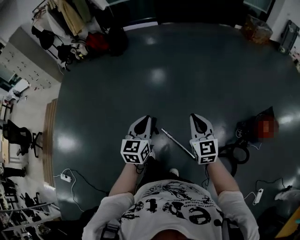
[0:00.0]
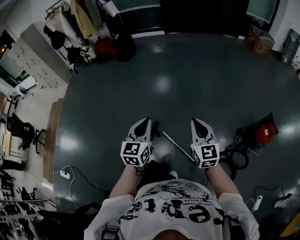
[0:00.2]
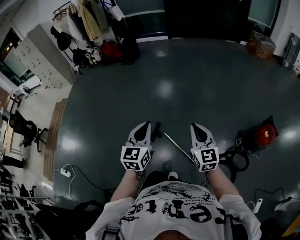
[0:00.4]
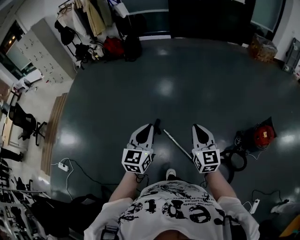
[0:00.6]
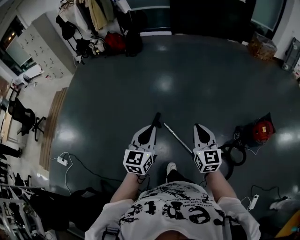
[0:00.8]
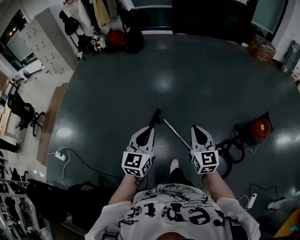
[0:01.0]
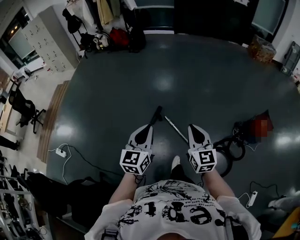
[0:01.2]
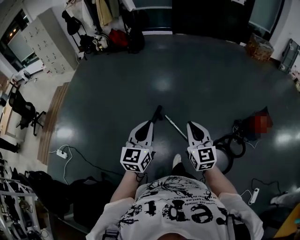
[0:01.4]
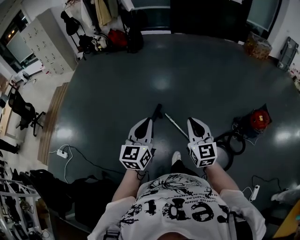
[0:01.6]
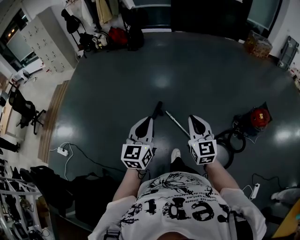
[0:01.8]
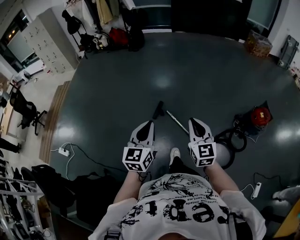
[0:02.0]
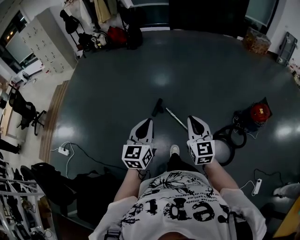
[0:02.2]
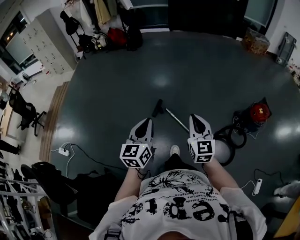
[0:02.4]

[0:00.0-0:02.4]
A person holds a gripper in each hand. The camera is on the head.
0:00.0 to 0:01.2: Both grippers move backward, roughly 35 cm.
0:01.2 to 0:02.4: The grippers both shift backward by some 10 cm.

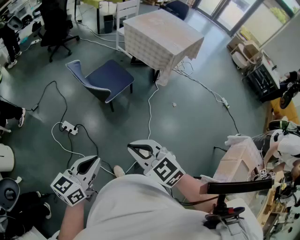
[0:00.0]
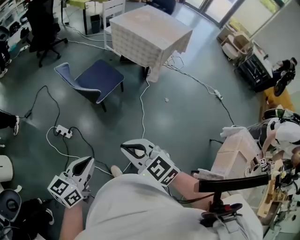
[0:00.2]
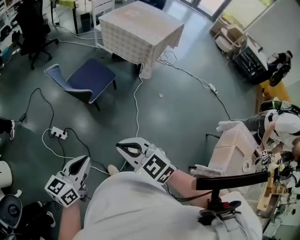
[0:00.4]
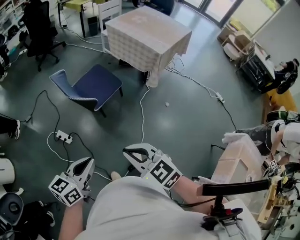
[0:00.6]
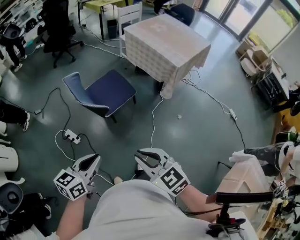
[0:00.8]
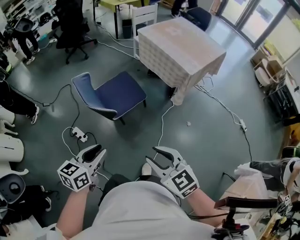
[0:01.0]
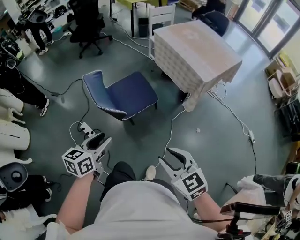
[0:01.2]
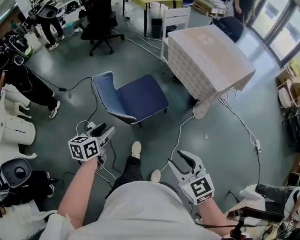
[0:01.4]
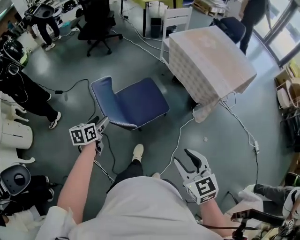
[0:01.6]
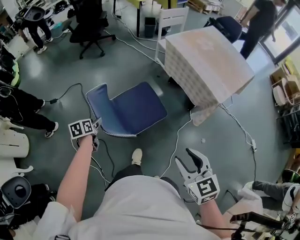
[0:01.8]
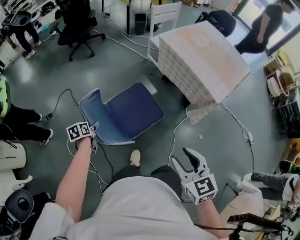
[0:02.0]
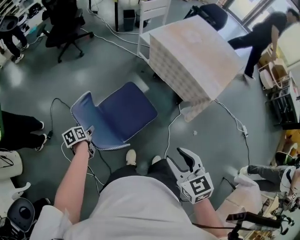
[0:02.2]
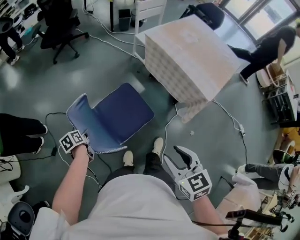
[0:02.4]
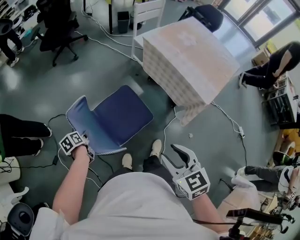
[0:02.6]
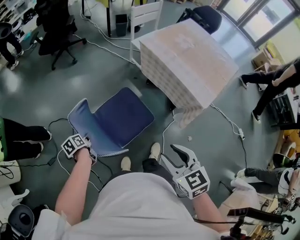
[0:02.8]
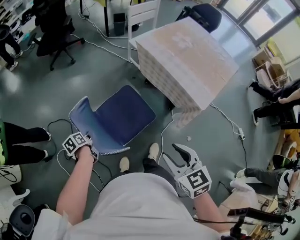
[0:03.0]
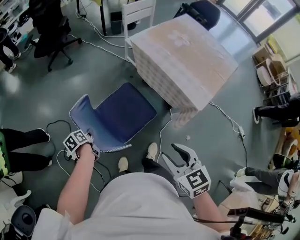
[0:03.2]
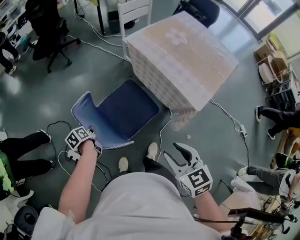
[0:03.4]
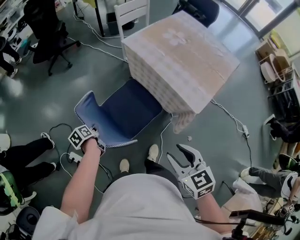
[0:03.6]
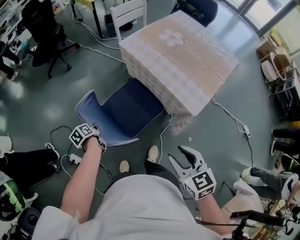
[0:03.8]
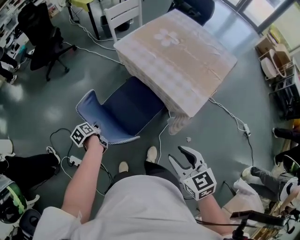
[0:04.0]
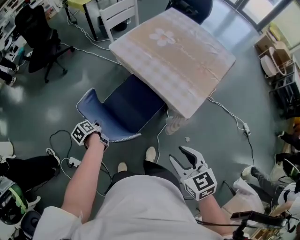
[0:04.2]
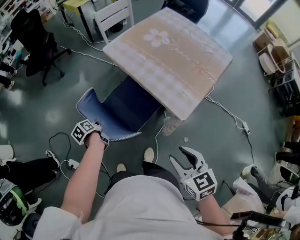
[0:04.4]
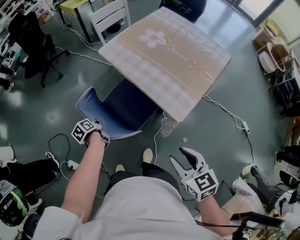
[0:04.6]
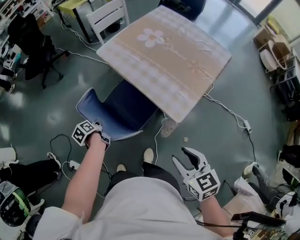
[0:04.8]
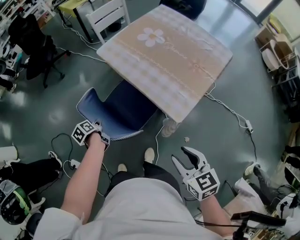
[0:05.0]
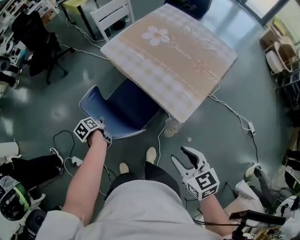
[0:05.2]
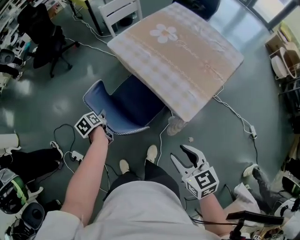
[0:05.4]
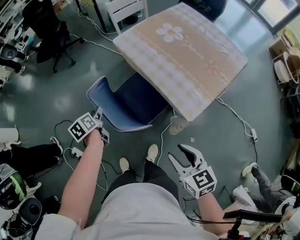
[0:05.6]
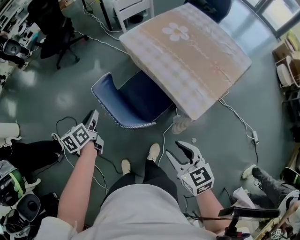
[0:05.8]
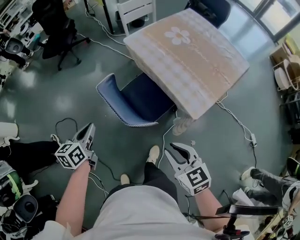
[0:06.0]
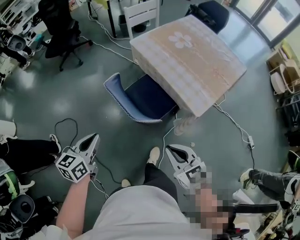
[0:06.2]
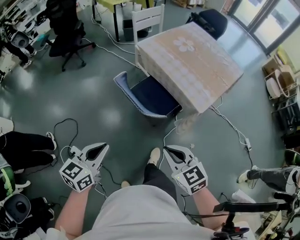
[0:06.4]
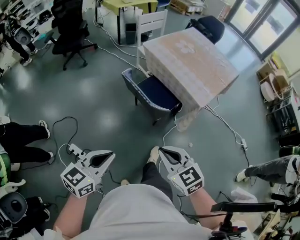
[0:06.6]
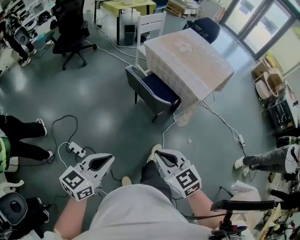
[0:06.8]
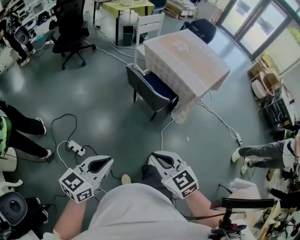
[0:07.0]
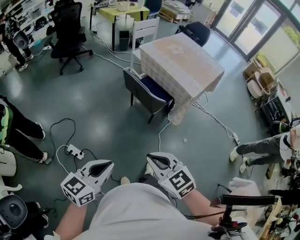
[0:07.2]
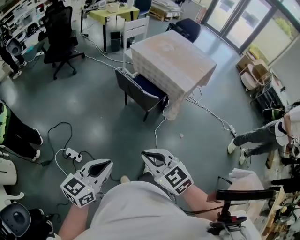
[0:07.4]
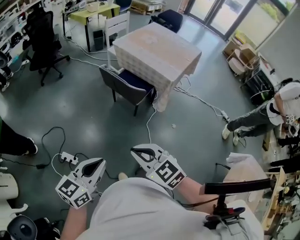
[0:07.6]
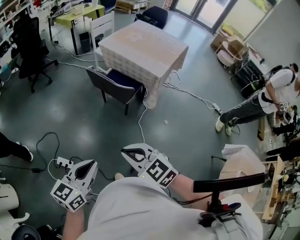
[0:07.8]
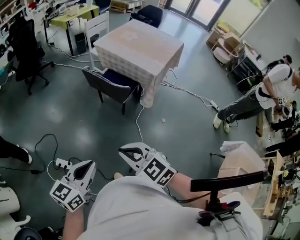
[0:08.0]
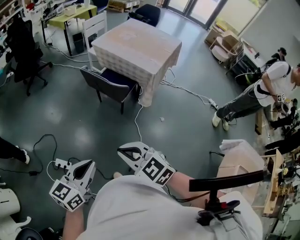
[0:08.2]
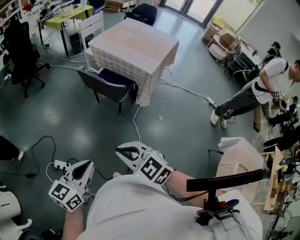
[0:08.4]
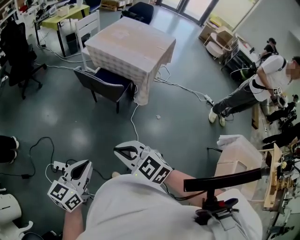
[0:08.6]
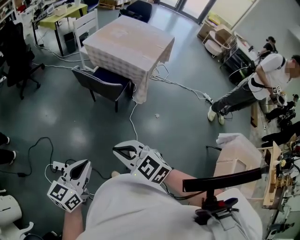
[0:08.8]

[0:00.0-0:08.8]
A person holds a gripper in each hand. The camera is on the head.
0:00.0 to 0:01.4: The right gripper goes approximately 30 cm forward and to the right, and opens up. The left gripper moves forward, some 35 cm, turns by roughly 30 degrees, and opens up.
0:01.4 to 0:03.0: The left gripper goes some 35 cm forward and downward, changes its angle by some 40 degrees, and closes up. Meanwhile the right gripper travels forward by about 30 cm.
0:03.0 to 0:04.4: The right gripper moves to the right, about 20 cm, while the left gripper moves to the right and forward, approximately 30 cm.
0:04.4 to 0:05.8: The left gripper is displaced upward by about 15 cm, rotates about 30 degrees, and opens and closes again.
0:05.8 to 0:07.4: Both grippers are carried backward and to the left, roughly 50 cm. The right gripper closes up, while the left gripper turns by approximately 50 degrees, and closes its fingers.
0:07.4 to 0:08.8: The grippers make only small movements.

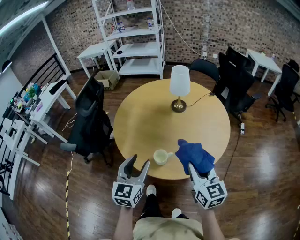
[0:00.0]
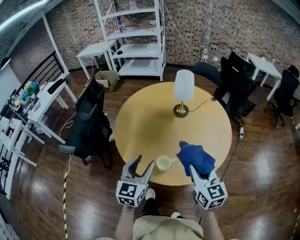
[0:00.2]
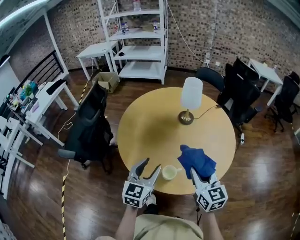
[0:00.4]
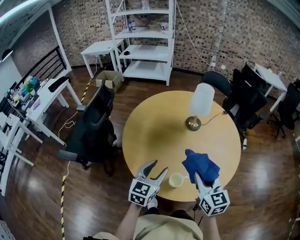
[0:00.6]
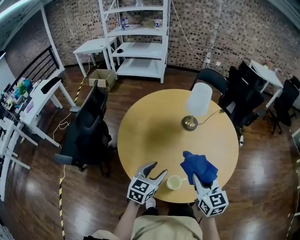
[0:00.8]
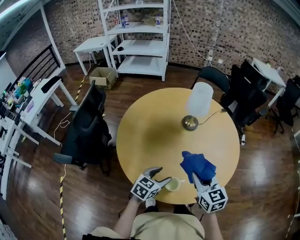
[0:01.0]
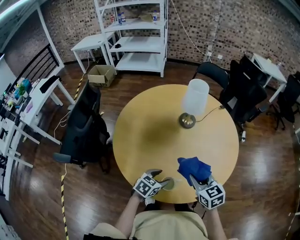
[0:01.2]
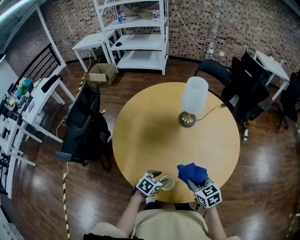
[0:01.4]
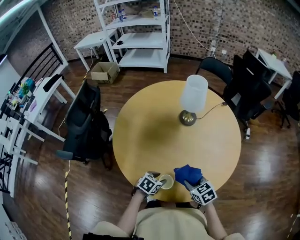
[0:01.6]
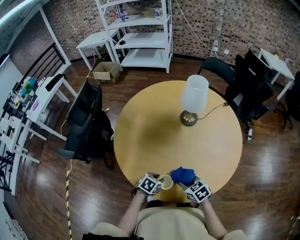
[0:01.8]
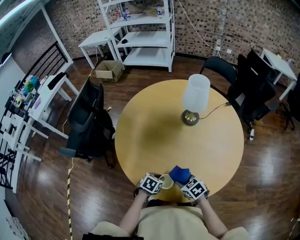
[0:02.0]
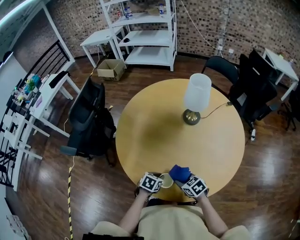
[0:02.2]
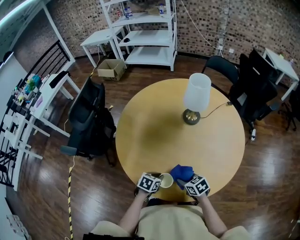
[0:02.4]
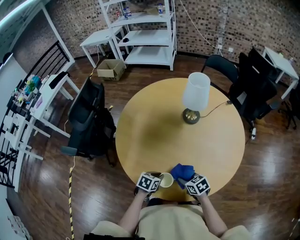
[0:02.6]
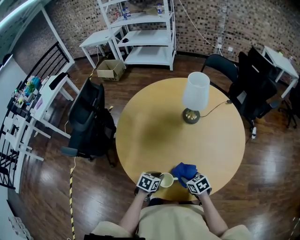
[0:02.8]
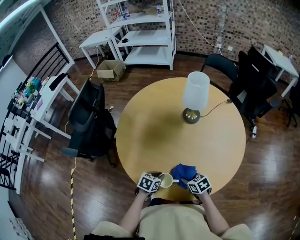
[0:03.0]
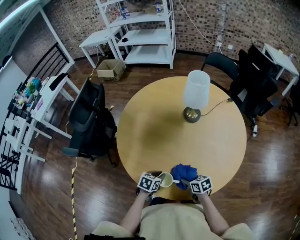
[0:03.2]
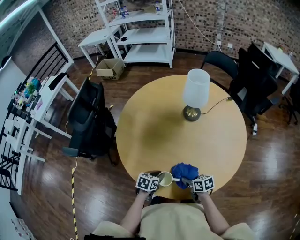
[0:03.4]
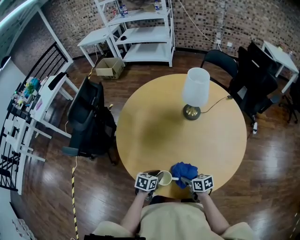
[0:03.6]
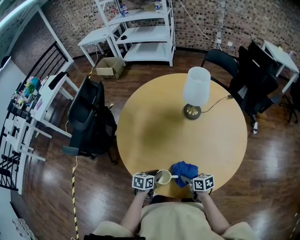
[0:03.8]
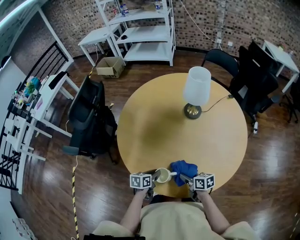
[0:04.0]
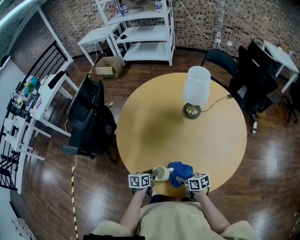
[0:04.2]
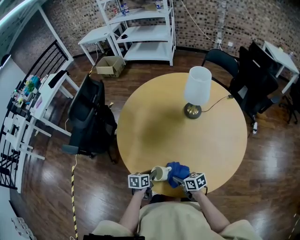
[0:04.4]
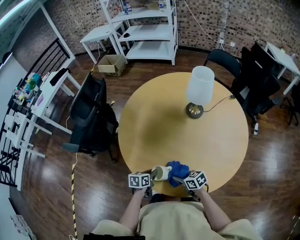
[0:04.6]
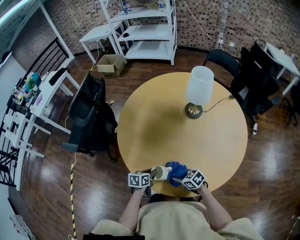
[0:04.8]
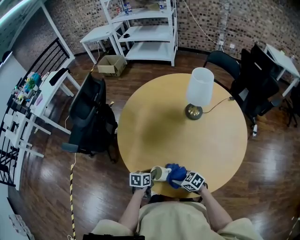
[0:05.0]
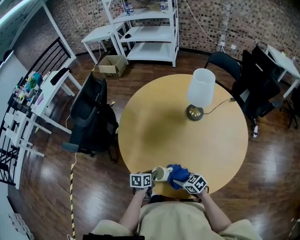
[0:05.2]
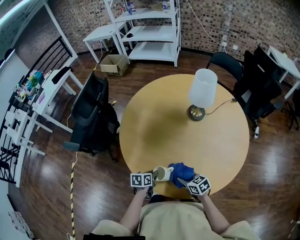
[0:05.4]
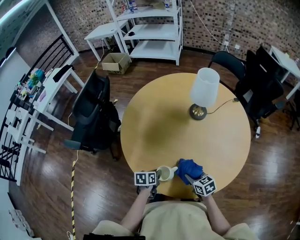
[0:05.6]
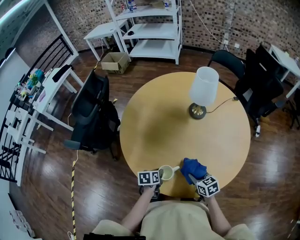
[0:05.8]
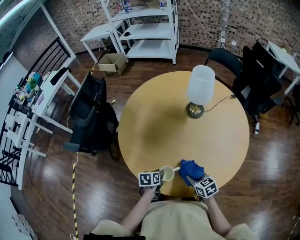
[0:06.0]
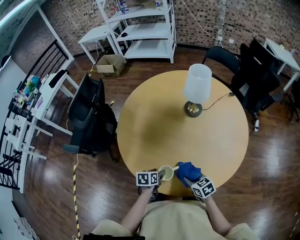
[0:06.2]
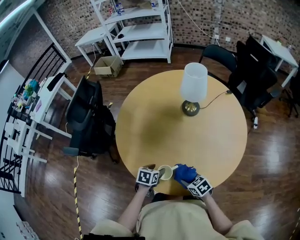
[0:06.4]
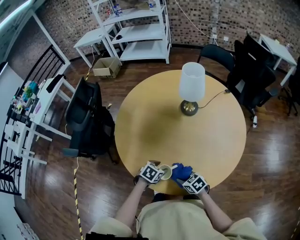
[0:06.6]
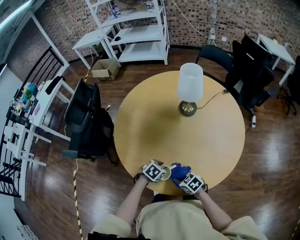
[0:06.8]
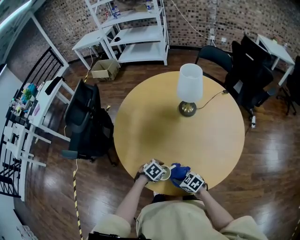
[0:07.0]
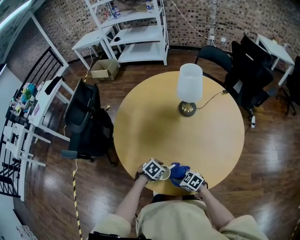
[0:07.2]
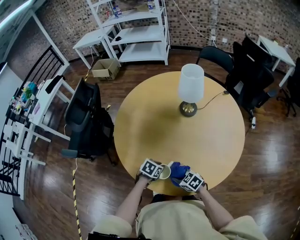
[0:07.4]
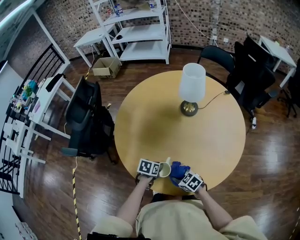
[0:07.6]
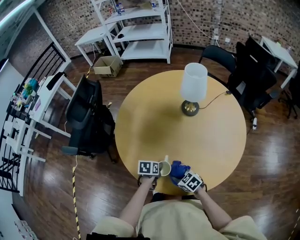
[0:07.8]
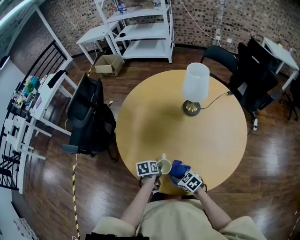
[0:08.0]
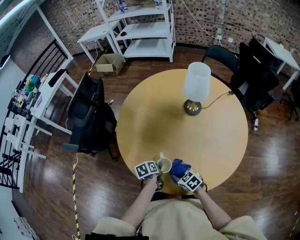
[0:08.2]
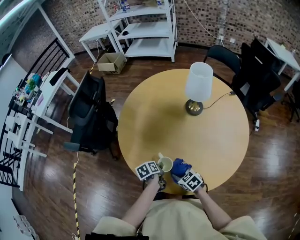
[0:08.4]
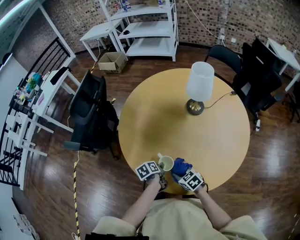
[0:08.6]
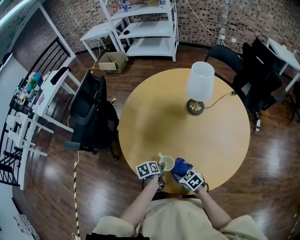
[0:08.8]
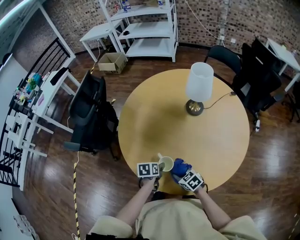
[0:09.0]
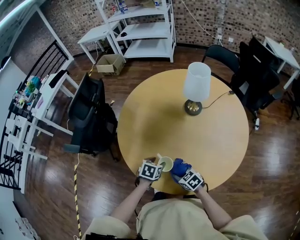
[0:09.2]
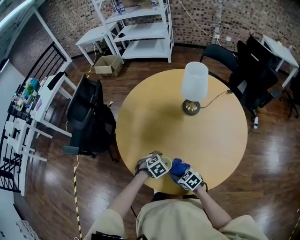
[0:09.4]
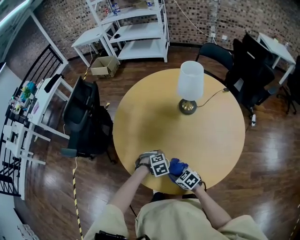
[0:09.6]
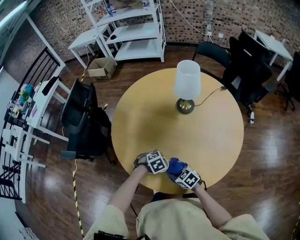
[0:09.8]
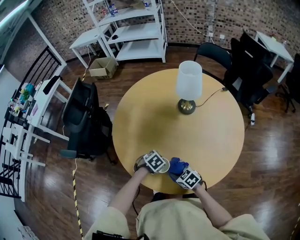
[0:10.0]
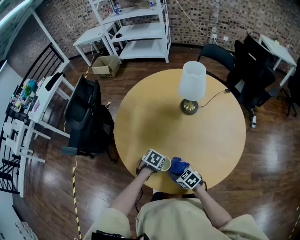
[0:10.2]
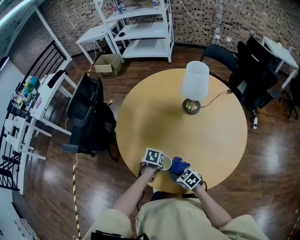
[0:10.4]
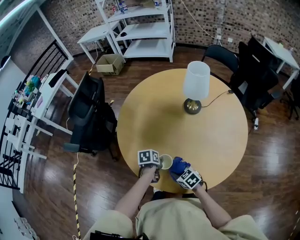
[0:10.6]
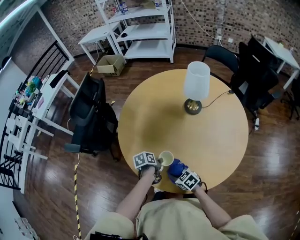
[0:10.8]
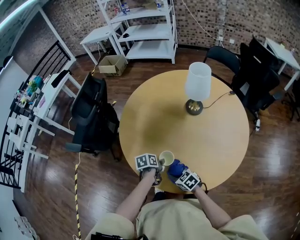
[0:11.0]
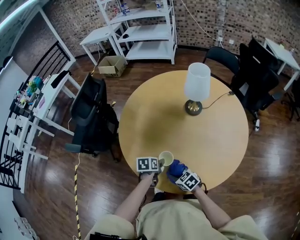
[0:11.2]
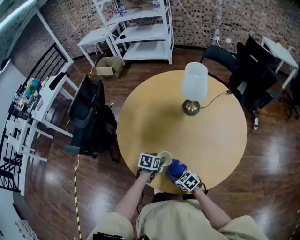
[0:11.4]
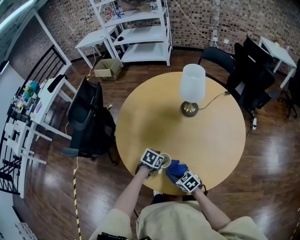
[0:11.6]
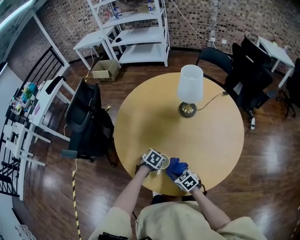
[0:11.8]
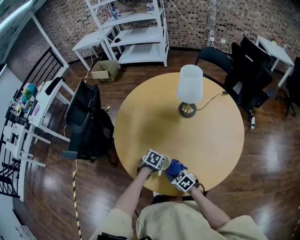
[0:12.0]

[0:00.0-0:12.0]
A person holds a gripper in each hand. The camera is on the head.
0:00.0 to 0:01.6: Both grippers move downward and forward, roughly 25 cm. The right gripper tips its fingers downward by roughly 40 degrees, while the left gripper angles its fingers downward, by some 40 degrees.
0:01.6 to 0:03.0: The left gripper closes its fingers. The right gripper heads downward, covering roughly 10 cm.
0:03.0 to 0:04.4: Both grippers move to the left, approximately 5 cm. The left gripper changes its angle by roughly 30 degrees.
0:04.4 to 0:06.0: The right gripper is displaced to the right by approximately 5 cm, and changes its angle by about 20 degrees.
0:06.0 to 0:07.6: The left gripper turns by roughly 20 degrees, and opens, then closes again. Meanwhile the right gripper moves some 10 cm, and turns by some 20 degrees.
0:07.6 to 0:09.0: The left gripper swivels some 20 degrees, and opens.
0:09.0 to 0:10.4: The left gripper rotates about 20 degrees, and closes.
0:10.4 to 0:12.0: The left gripper changes its angle by some 20 degrees, and opens and closes again.
